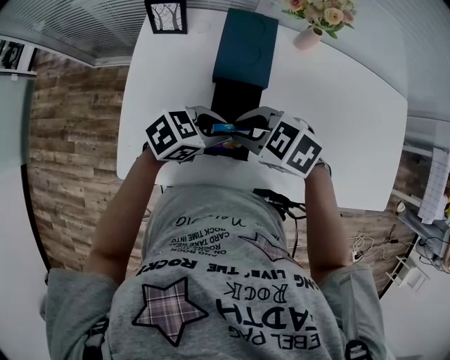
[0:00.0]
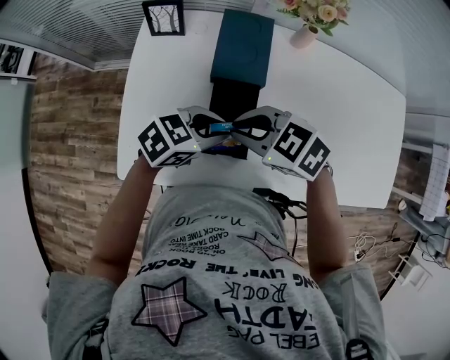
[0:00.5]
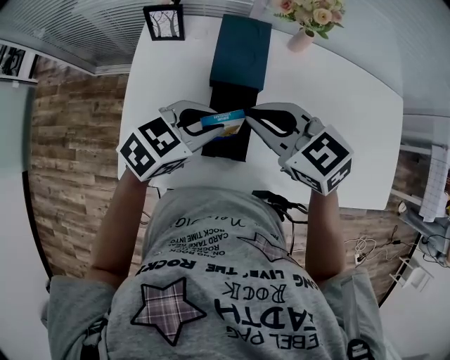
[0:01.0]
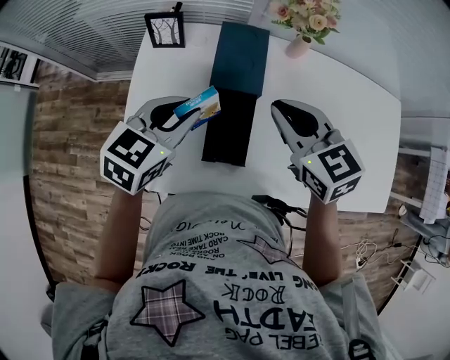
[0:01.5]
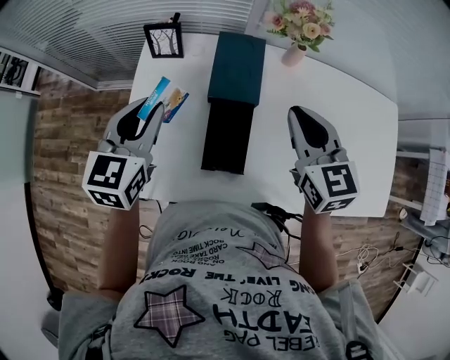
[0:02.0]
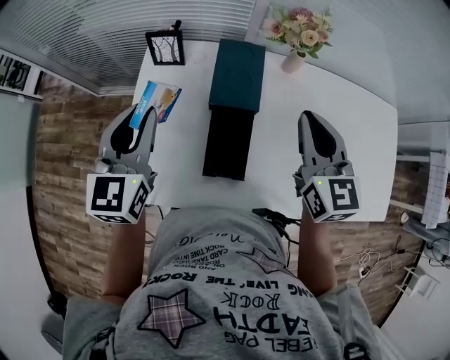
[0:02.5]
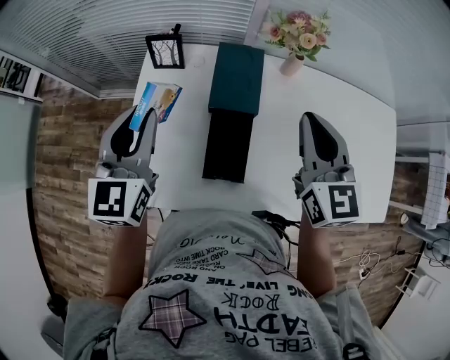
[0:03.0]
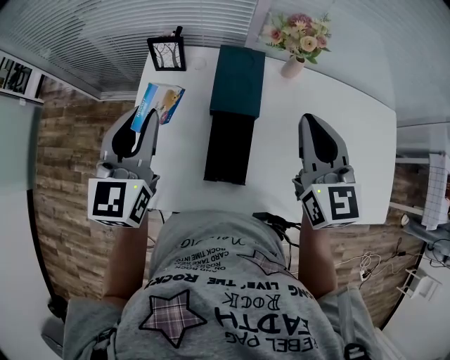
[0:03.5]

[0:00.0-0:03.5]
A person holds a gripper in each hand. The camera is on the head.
0:00.0 to 0:02.0: The left gripper moves some 25 cm, and turns by about 60 degrees. Meanwhile the right gripper moves about 20 cm, and turns by about 60 degrees.
0:02.0 to 0:03.5: The grippers both shift upward by about 5 cm.

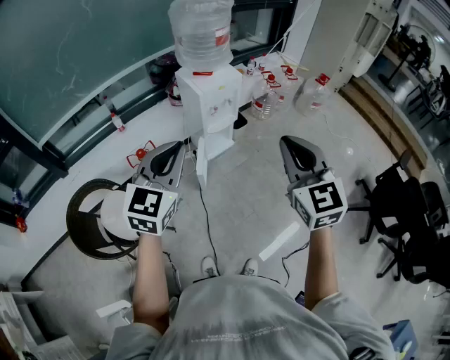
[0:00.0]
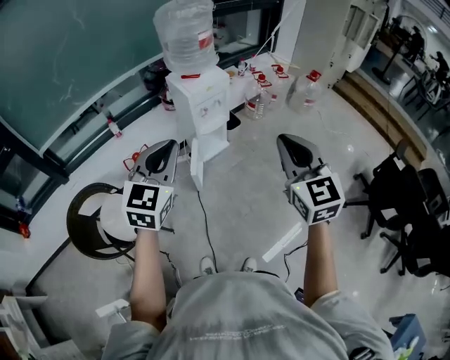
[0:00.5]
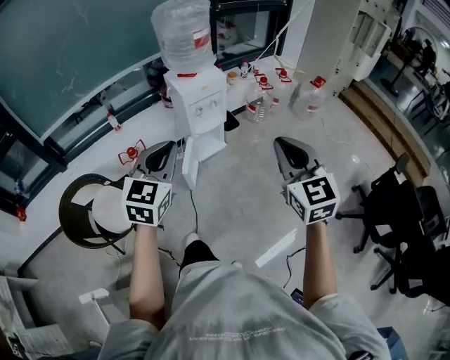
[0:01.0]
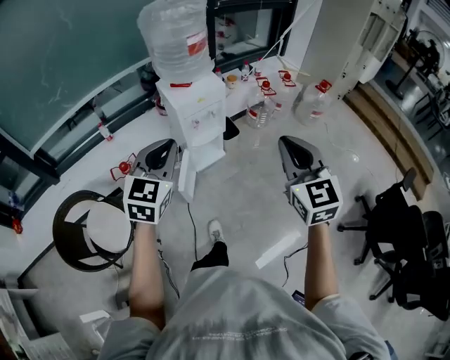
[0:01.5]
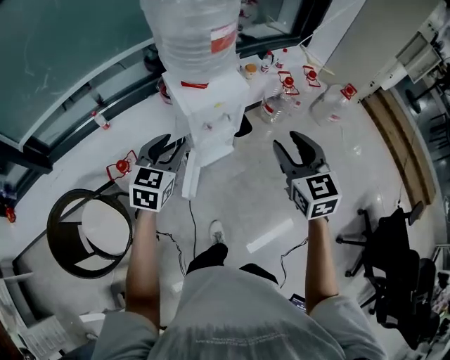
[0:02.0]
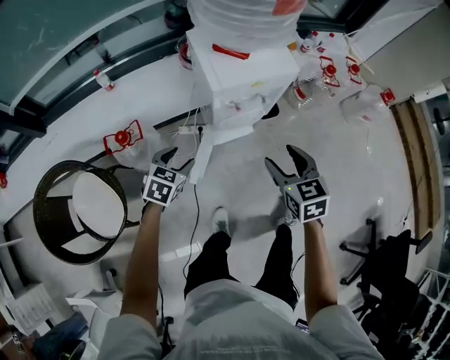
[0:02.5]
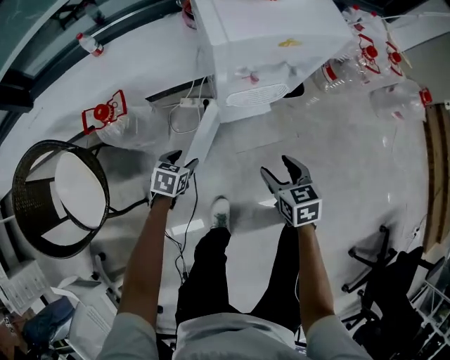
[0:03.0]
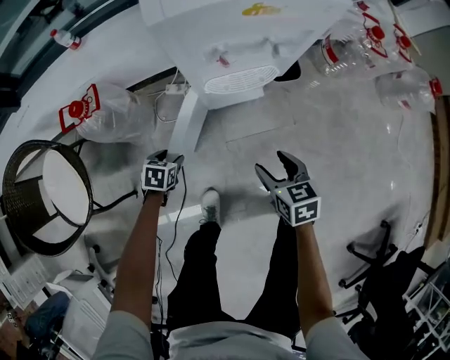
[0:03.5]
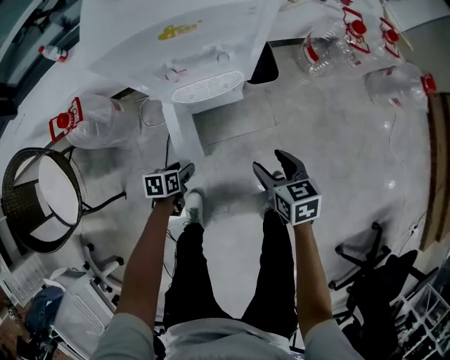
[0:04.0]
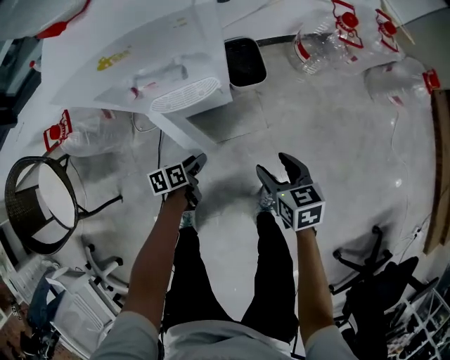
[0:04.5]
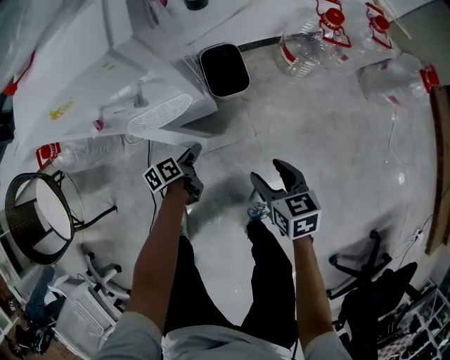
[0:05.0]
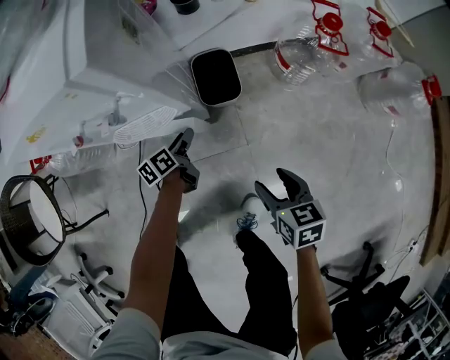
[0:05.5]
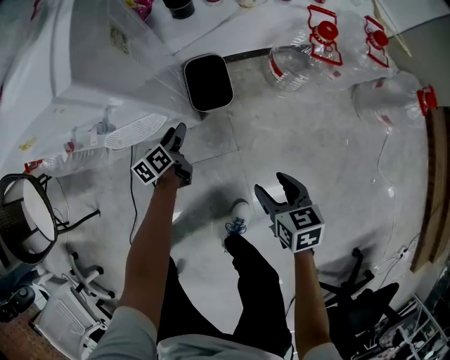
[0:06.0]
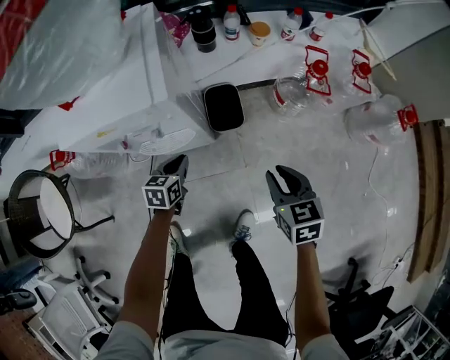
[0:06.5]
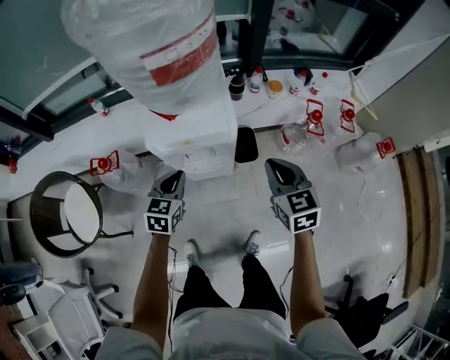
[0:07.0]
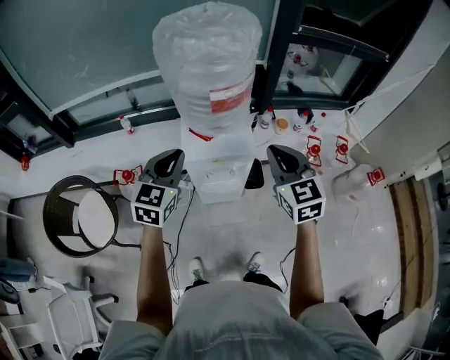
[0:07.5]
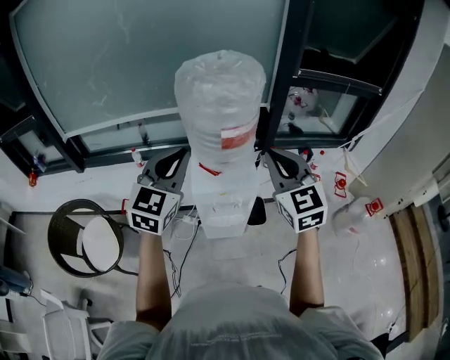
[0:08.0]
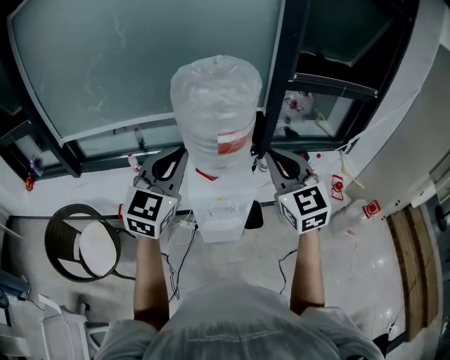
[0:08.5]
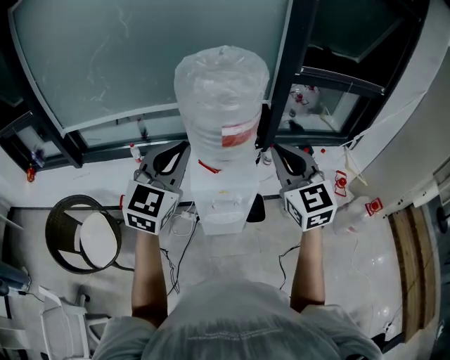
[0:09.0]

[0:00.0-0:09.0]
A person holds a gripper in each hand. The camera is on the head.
0:00.0 to 0:02.0: The left gripper shifts about 40 cm forward and downward, rotates about 20 degrees, and opens up. The right gripper travels forward by about 35 cm, and opens its fingers.
0:02.0 to 0:04.5: Both grippers move downward, some 60 cm. The left gripper rolls counterclockwise, seen from behind, by approximately 70 degrees; the right gripper turns by approximately 40 degrees.
0:04.5 to 0:07.0: Both grippers move upward, approximately 40 cm. The right gripper swivels roughly 30 degrees, and closes. The left gripper twists approximately 50 degrees clockwise, seen from behind, and closes up.
0:07.0 to 0:09.0: Both grippers move upward, some 40 cm. The left gripper points its fingers roughly 30 degrees further upward, while the right gripper swivels some 30 degrees.

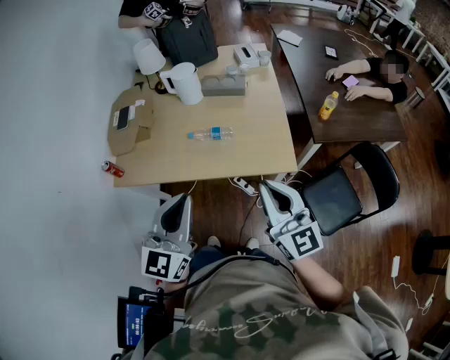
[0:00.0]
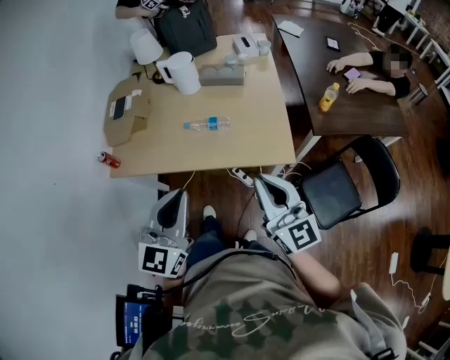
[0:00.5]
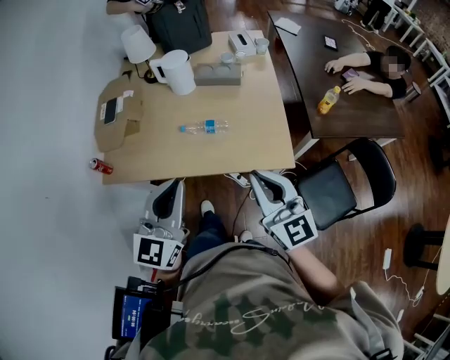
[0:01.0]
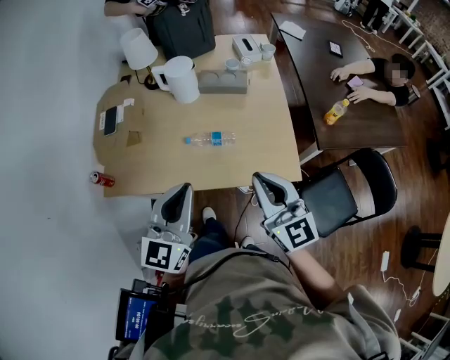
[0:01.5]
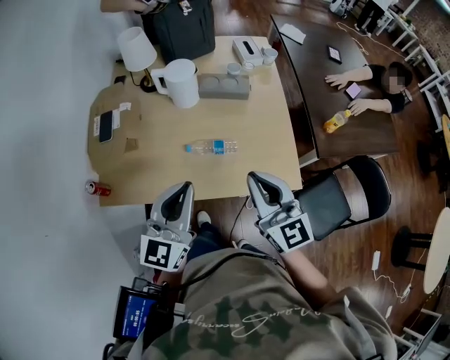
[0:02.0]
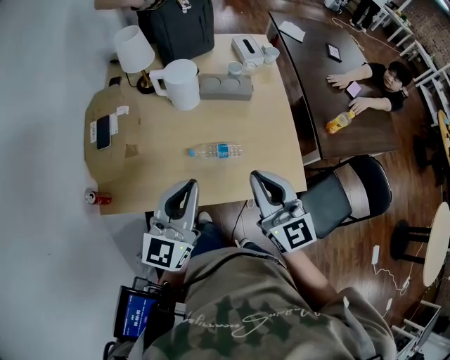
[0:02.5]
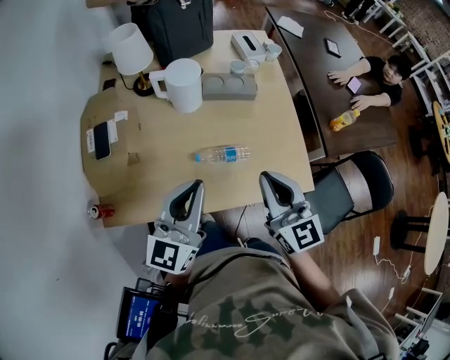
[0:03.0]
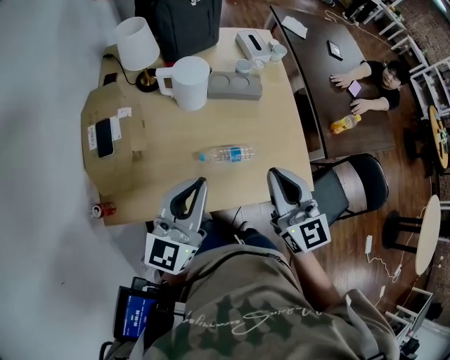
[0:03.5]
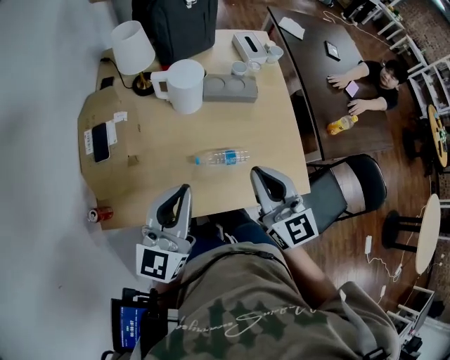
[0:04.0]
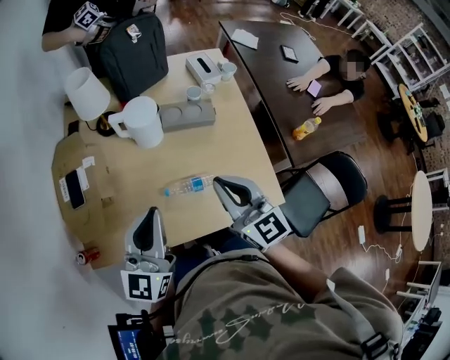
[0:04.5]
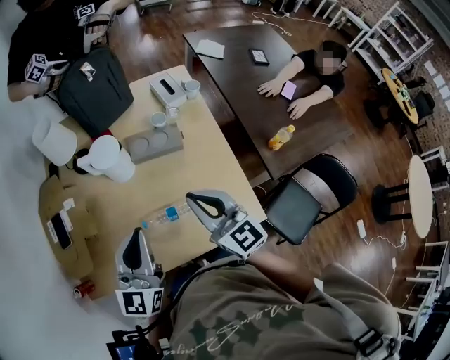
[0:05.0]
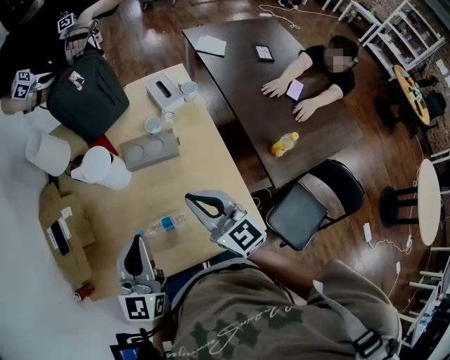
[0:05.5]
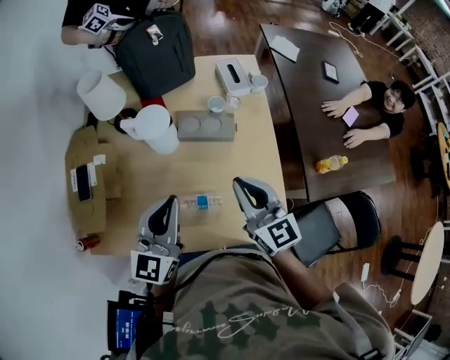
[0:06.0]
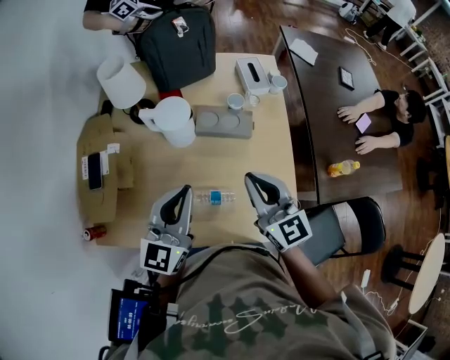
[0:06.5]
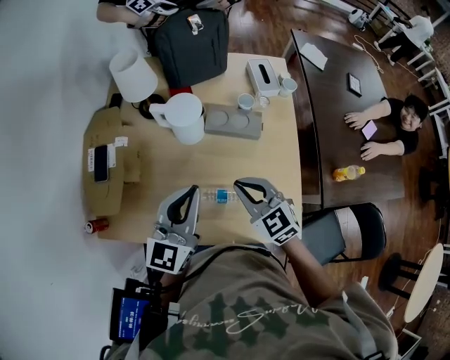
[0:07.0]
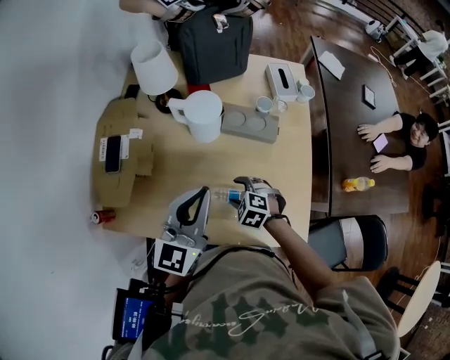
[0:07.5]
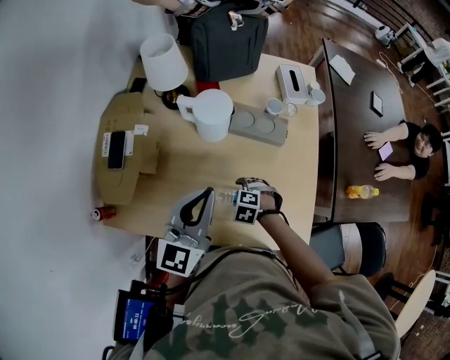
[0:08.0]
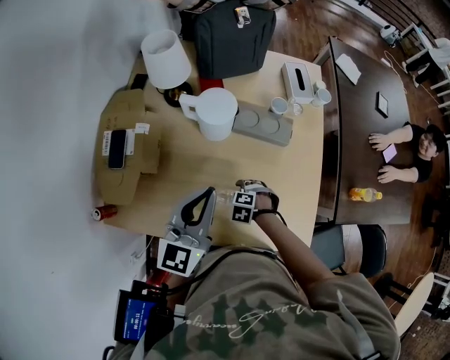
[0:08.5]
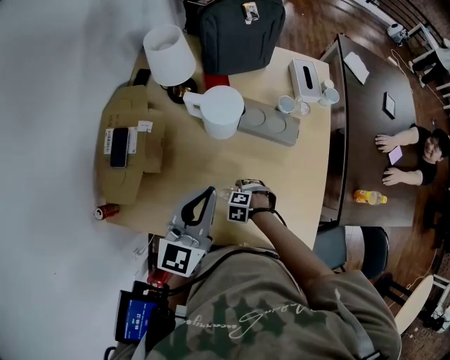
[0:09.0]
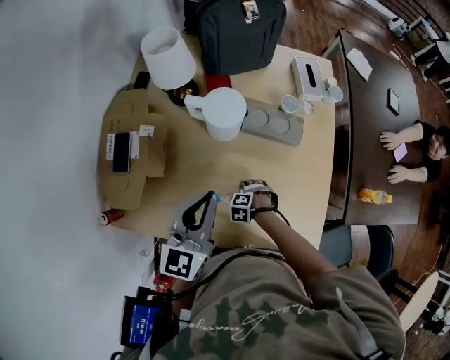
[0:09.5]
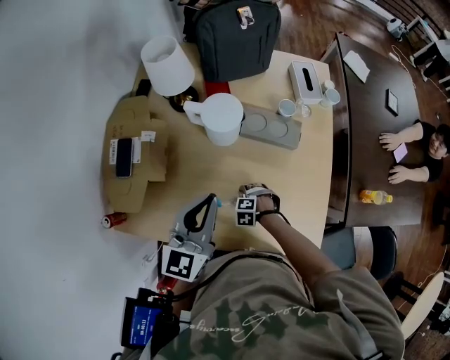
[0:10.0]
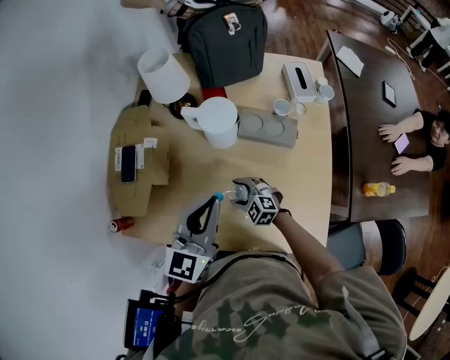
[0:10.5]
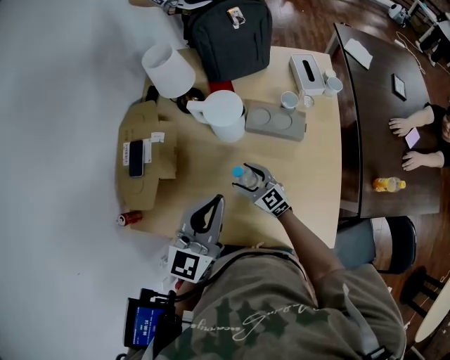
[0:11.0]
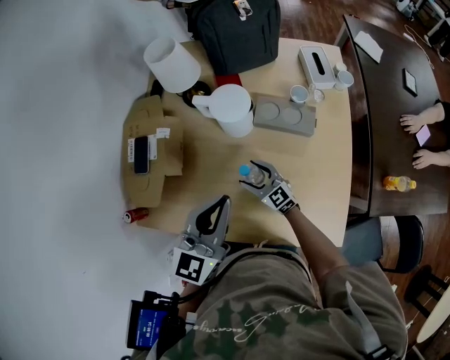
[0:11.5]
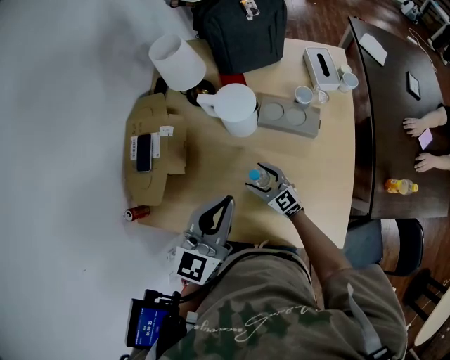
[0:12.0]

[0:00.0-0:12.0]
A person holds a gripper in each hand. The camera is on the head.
0:00.0 to 0:02.0: The right gripper shifts approximately 20 cm forward and to the left. The left gripper goes roughly 20 cm forward.
0:02.0 to 0:04.0: The right gripper heads forward and to the left, covering approximately 10 cm. Meanwhile the left gripper heads to the left and forward, covering some 15 cm.
0:04.0 to 0:06.0: Both grippers travel together forward and to the right, some 15 cm.
0:06.0 to 0:08.0: The right gripper goes some 30 cm downward, points its fingers about 70 degrees further downward, and opens. The left gripper moves roughly 5 cm.
0:08.0 to 0:10.0: The right gripper is displaced downward by roughly 10 cm.
0:10.0 to 0:12.0: The right gripper goes roughly 15 cm upward, and angles its fingers upward, by approximately 70 degrees.

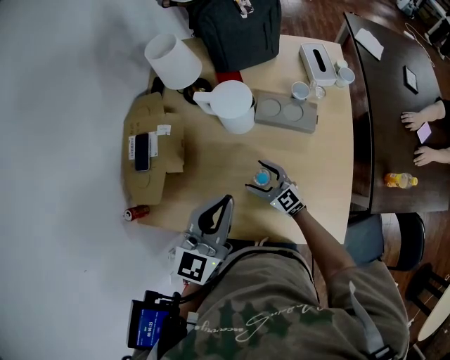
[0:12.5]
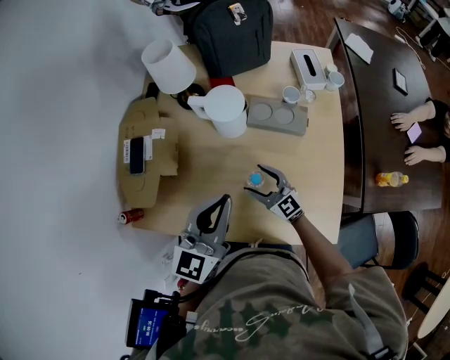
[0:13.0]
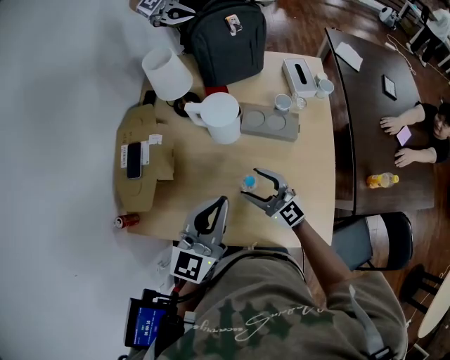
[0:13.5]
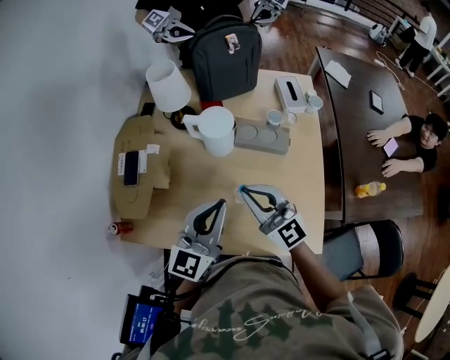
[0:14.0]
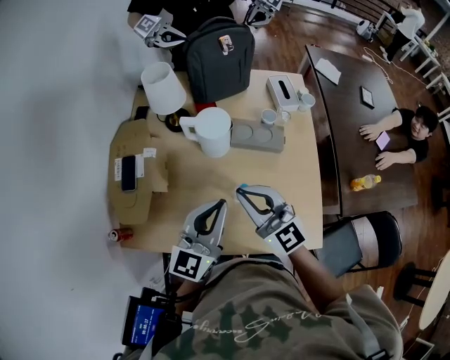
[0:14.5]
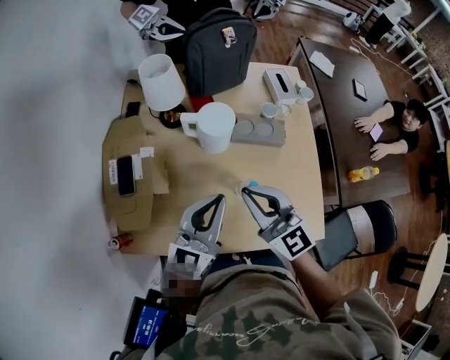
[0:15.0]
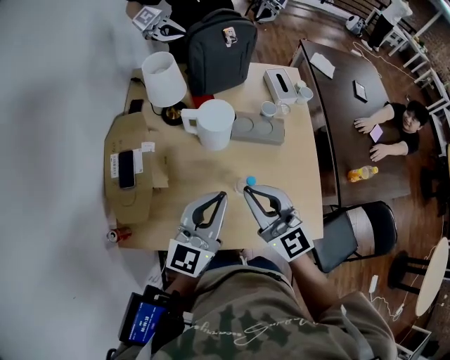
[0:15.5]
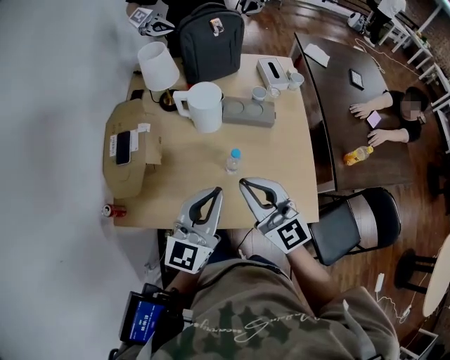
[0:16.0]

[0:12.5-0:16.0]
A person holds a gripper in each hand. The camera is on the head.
0:12.5 to 0:14.5: The right gripper moves upward, roughly 30 cm, changes its angle by about 20 degrees, and closes.
0:14.5 to 0:16.0: Both grippers move backward, some 10 cm.
